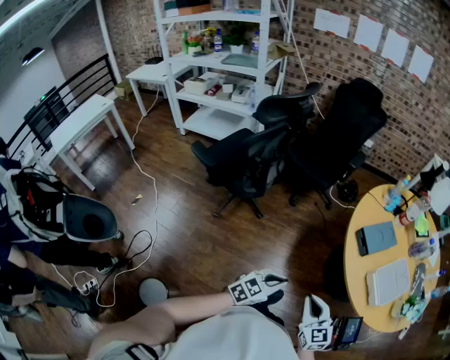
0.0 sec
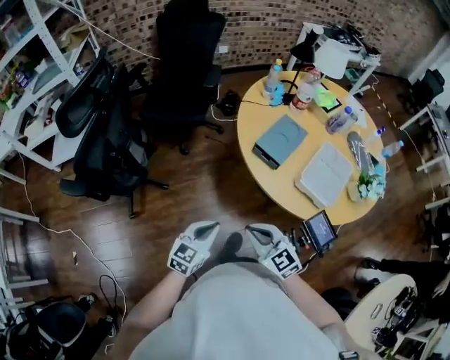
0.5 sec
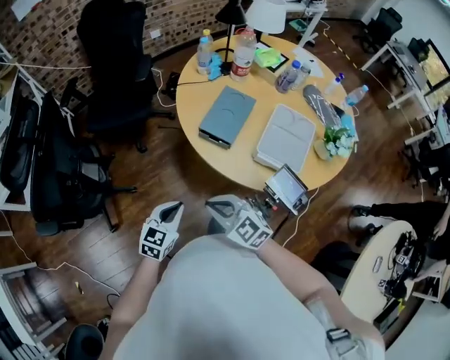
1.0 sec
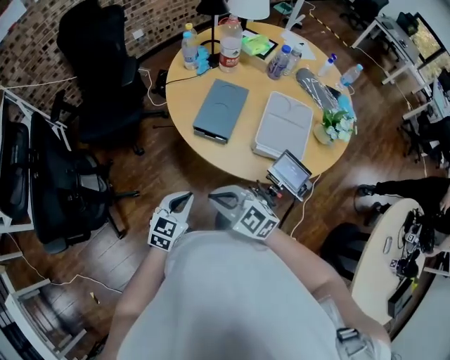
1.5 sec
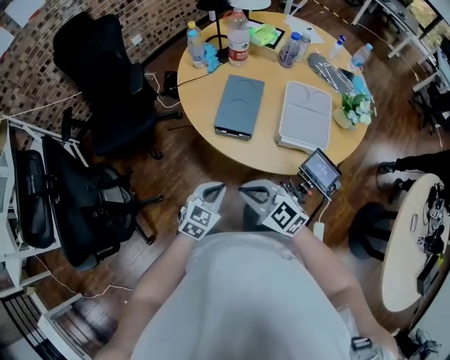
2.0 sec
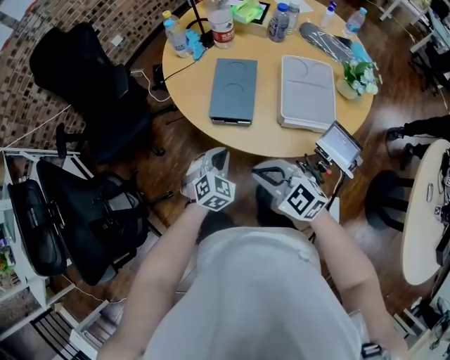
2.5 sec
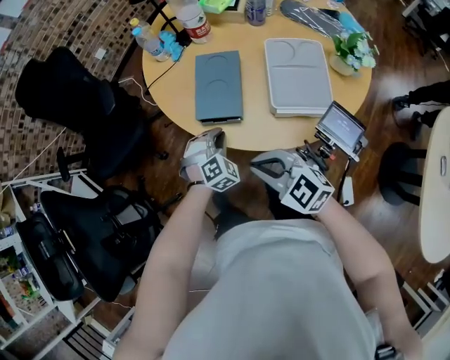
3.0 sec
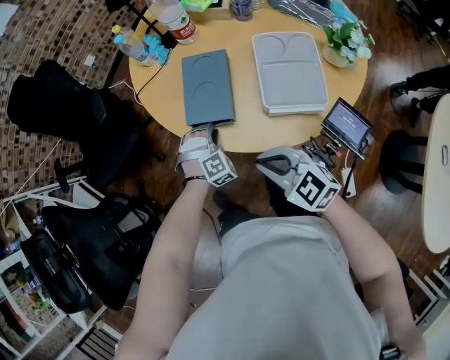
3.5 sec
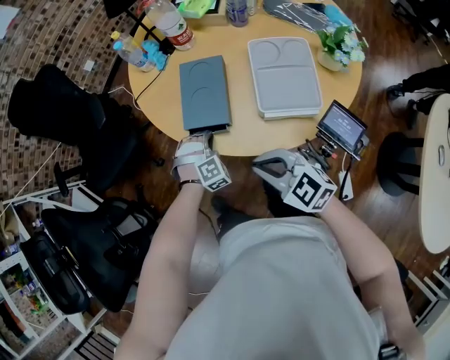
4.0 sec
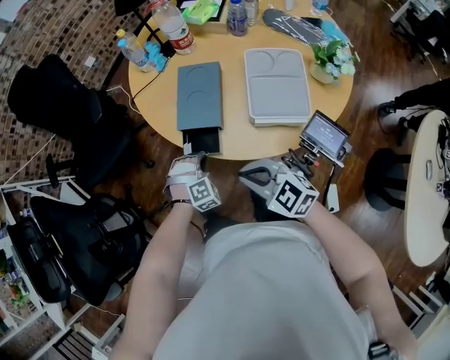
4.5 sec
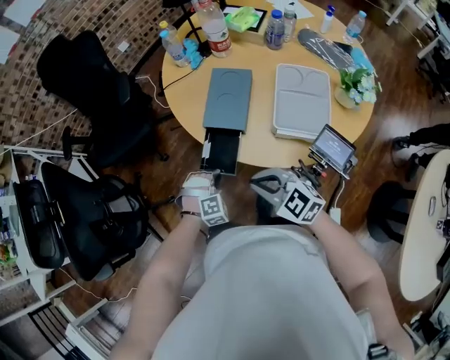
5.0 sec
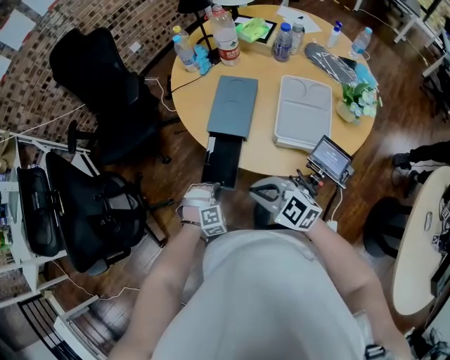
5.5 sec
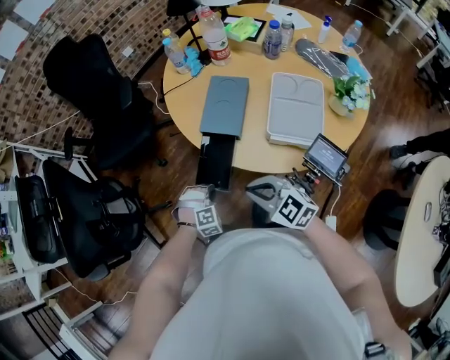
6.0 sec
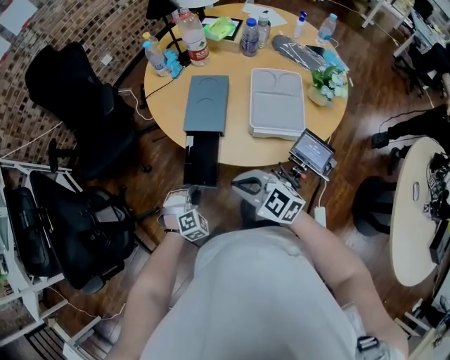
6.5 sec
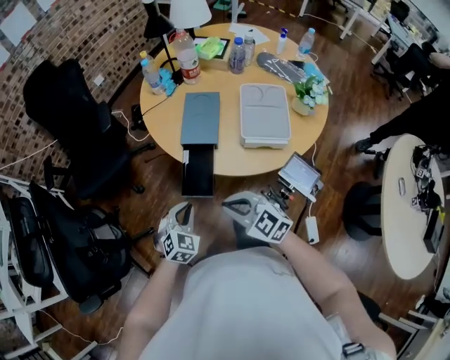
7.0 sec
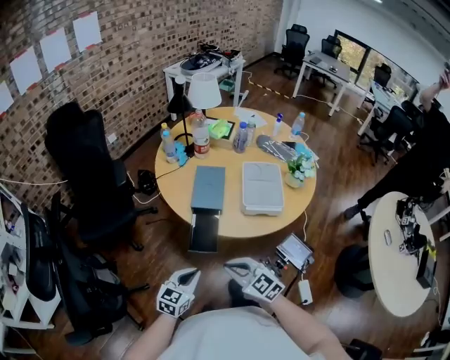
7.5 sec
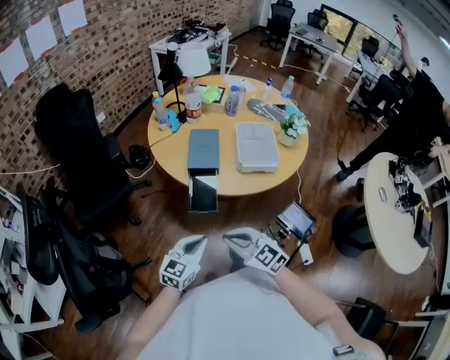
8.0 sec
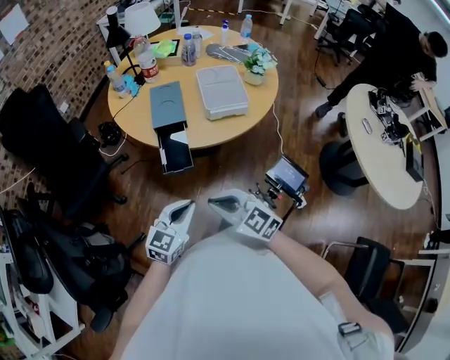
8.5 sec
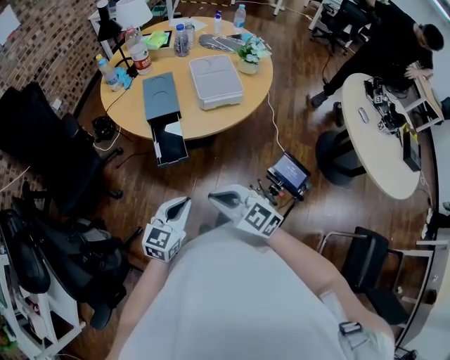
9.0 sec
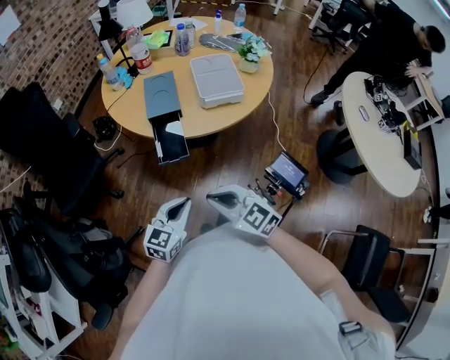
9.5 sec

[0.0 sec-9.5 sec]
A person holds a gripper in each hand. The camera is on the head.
0.0 sec to 2.0 sec: Both grippers travel together forward, roughly 30 cm. The left gripper swivels some 30 degrees.
2.0 sec to 4.0 sec: The right gripper goes about 10 cm to the right. The left gripper moves forward, downward and to the right, roughly 20 cm, and twists approximately 60 degrees clockwise, seen from behind.
4.0 sec to 5.5 sec: The left gripper heads backward and to the left, covering roughly 15 cm.
5.5 sec to 7.5 sec: The left gripper goes approximately 15 cm upward, and tilts its fingers roughly 30 degrees upward; the right gripper changes place by roughly 10 cm.
7.5 sec to 9.5 sec: Both grippers move backward, roughly 10 cm.

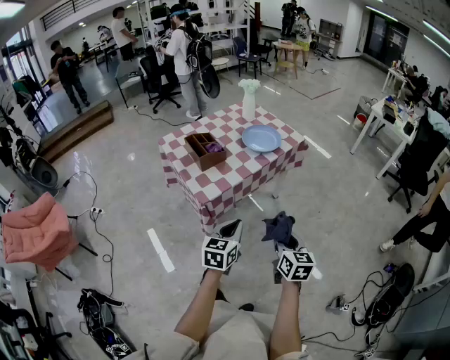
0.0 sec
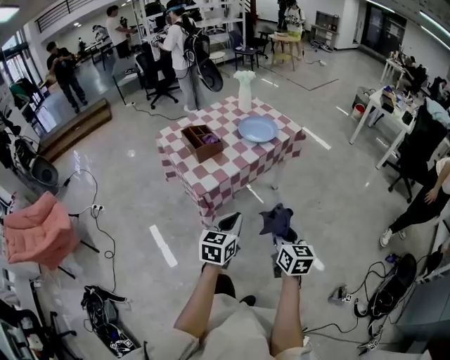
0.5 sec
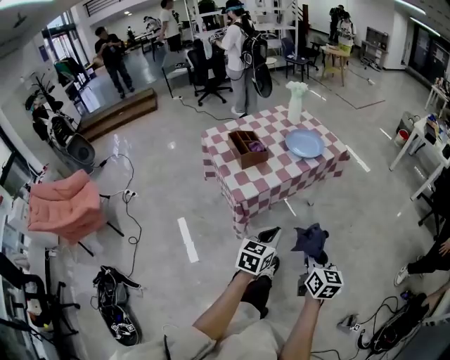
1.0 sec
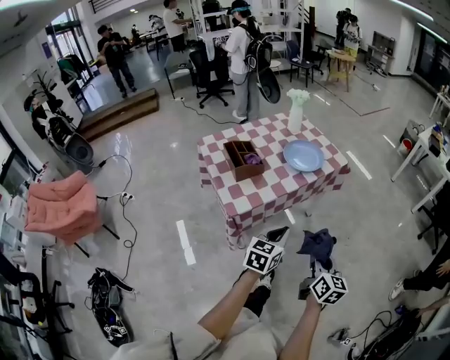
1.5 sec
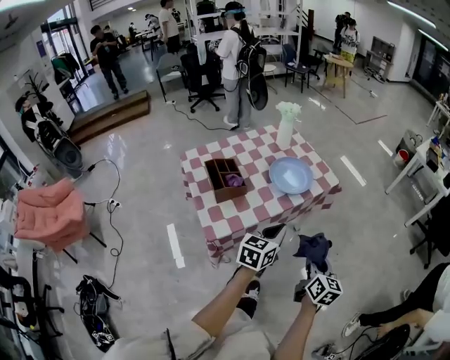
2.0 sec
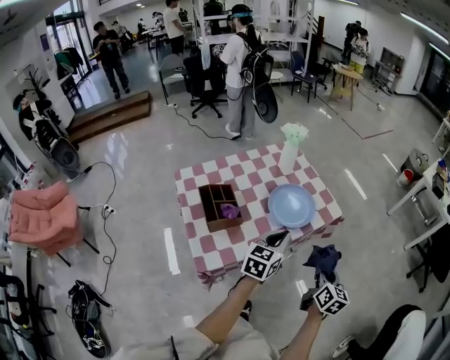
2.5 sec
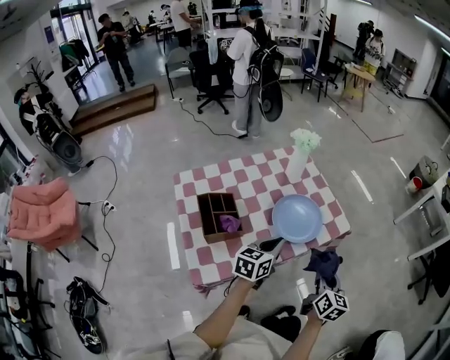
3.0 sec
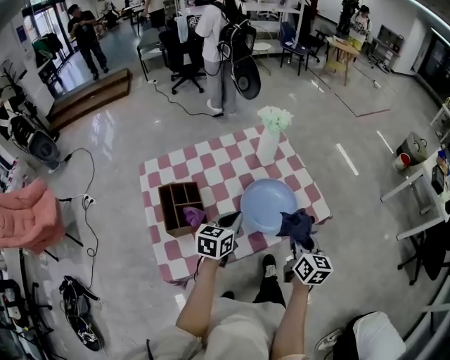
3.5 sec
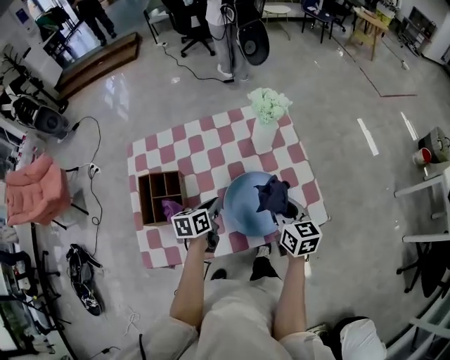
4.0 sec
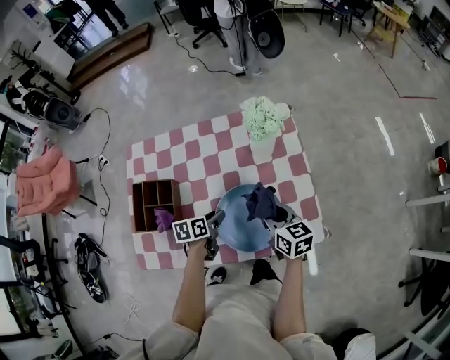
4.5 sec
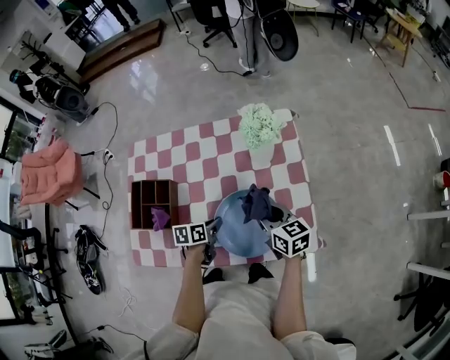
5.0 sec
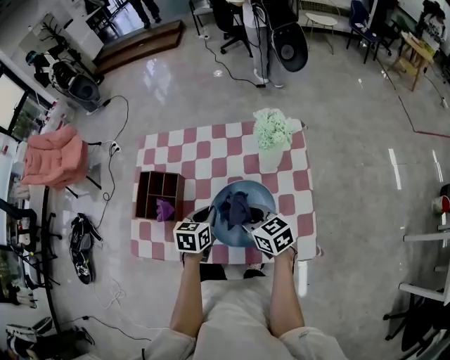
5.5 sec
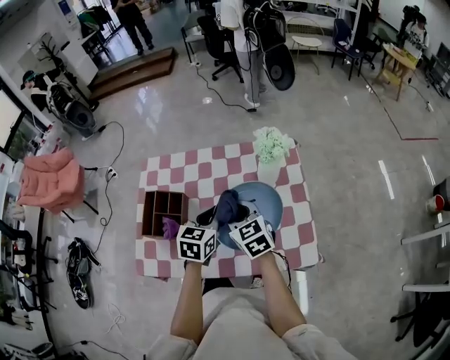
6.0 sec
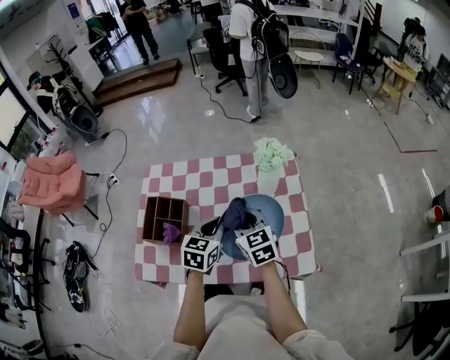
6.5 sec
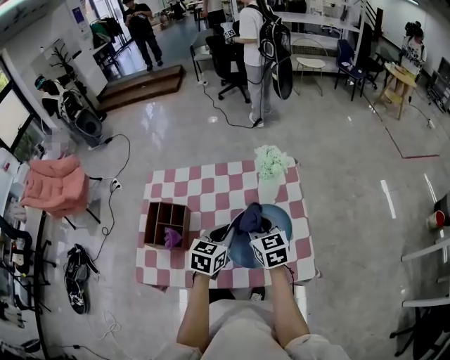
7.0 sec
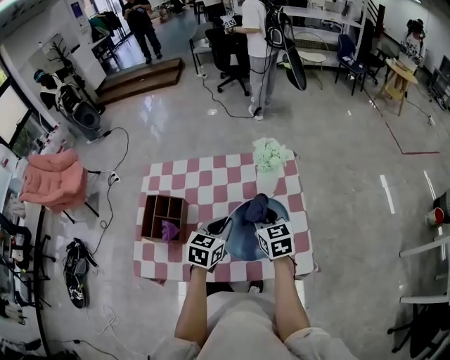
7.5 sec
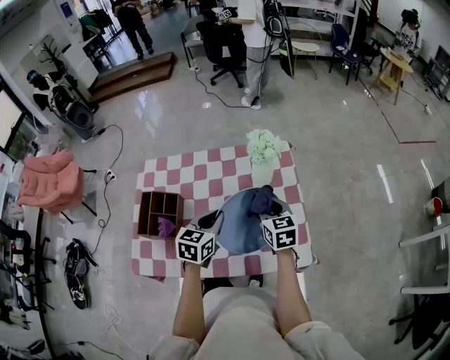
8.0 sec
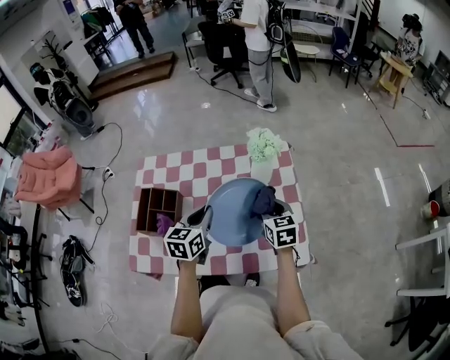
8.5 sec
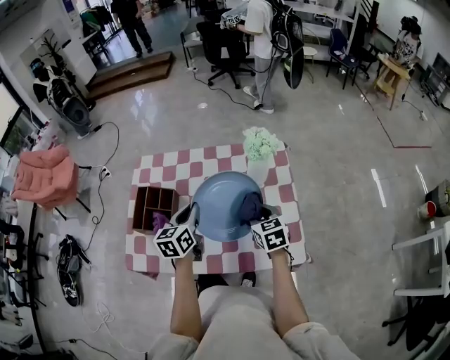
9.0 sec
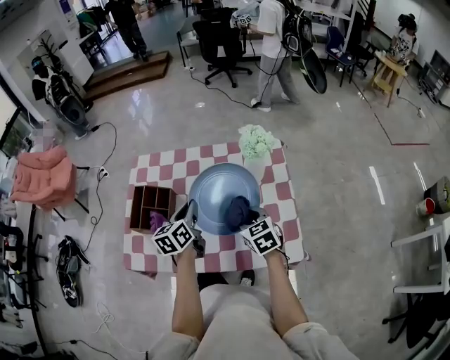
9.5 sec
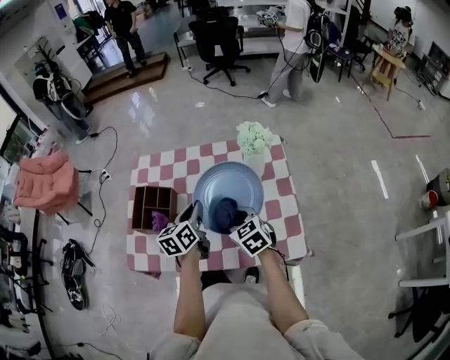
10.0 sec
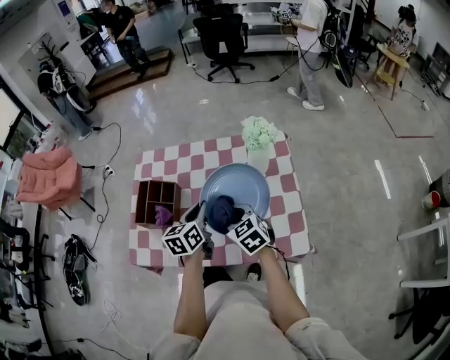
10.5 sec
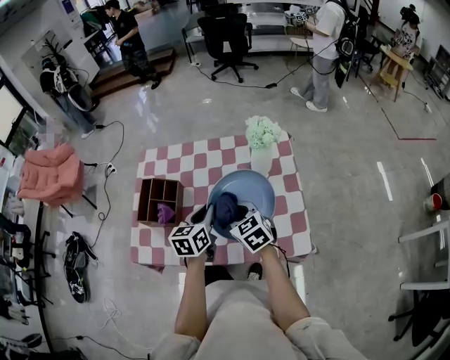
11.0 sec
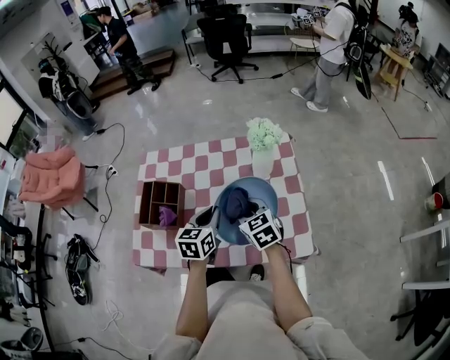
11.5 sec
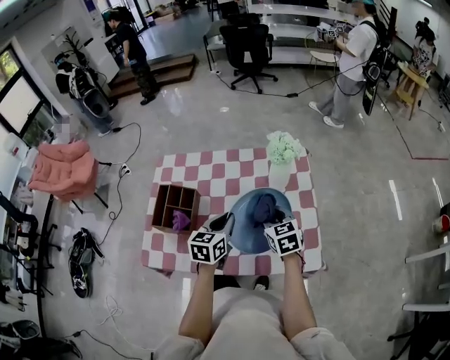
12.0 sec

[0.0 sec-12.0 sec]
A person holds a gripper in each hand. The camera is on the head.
0.0 sec to 2.0 sec: Both grippers move forward, some 25 cm.
2.0 sec to 4.0 sec: The right gripper ends up some 50 cm from where it was, and swivels about 40 degrees. Meanwhile the left gripper moves about 40 cm, and changes its angle by about 40 degrees.
4.0 sec to 6.0 sec: The left gripper moves upward, approximately 10 cm, swivels about 30 degrees, and opens and closes again; the right gripper shifts by about 15 cm, and turns by about 30 degrees.
6.0 sec to 8.0 sec: The right gripper heads to the right, covering approximately 15 cm.
8.0 sec to 10.0 sec: The left gripper shifts approximately 5 cm to the left, and swivels about 30 degrees, while the right gripper heads to the left and backward, covering some 10 cm, and rotates approximately 30 degrees.
10.0 sec to 12.0 sec: The right gripper is displaced to the right by roughly 5 cm; the left gripper changes its angle by roughly 20 degrees.

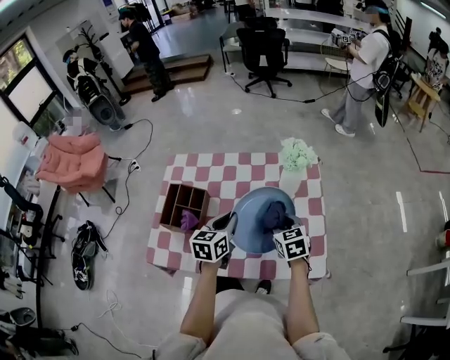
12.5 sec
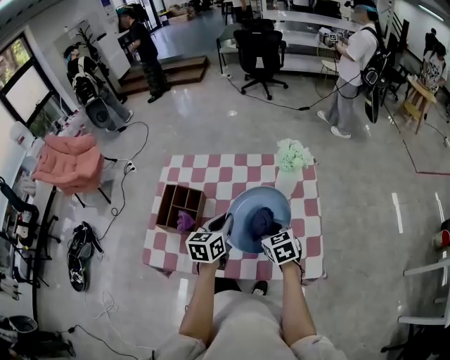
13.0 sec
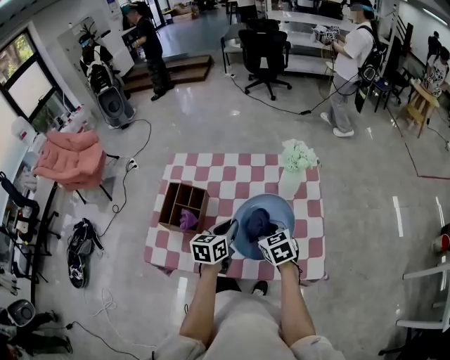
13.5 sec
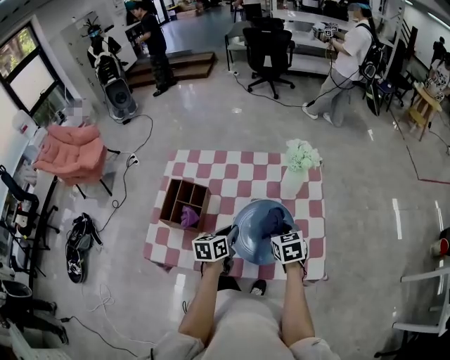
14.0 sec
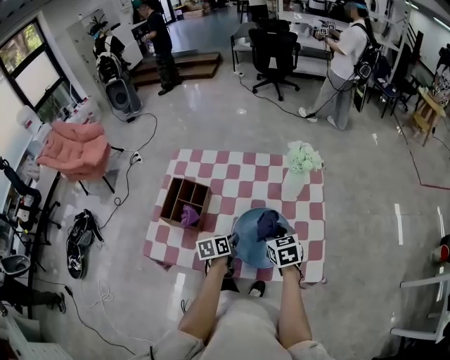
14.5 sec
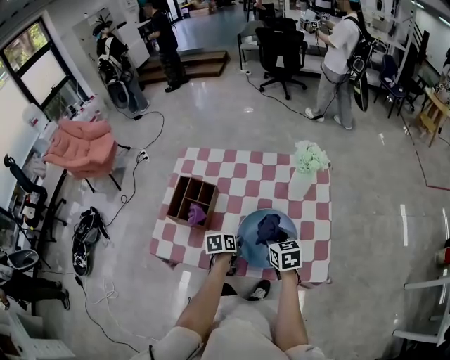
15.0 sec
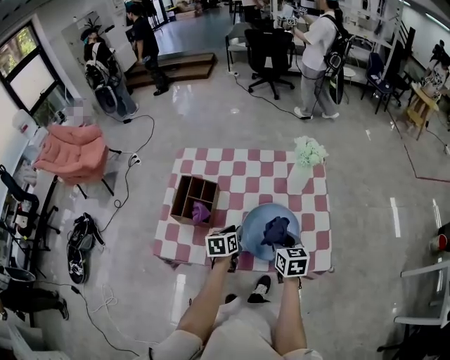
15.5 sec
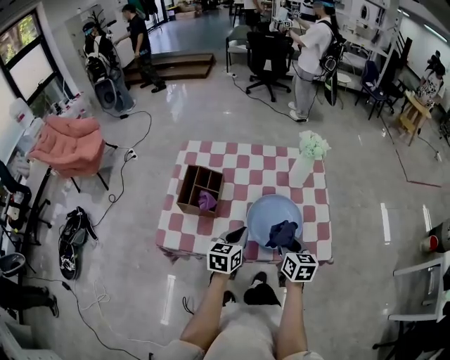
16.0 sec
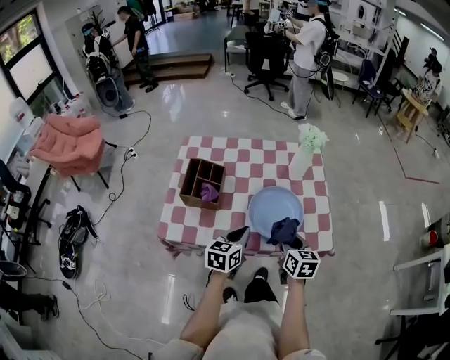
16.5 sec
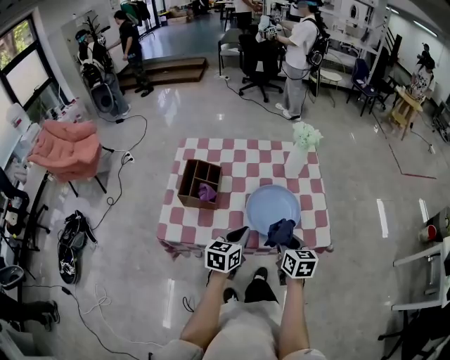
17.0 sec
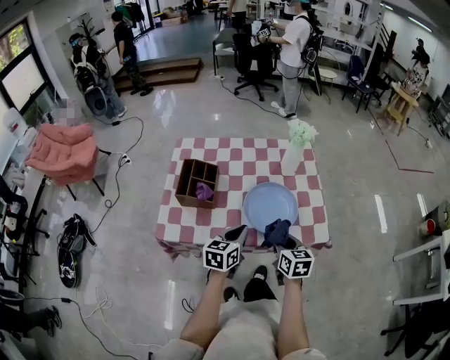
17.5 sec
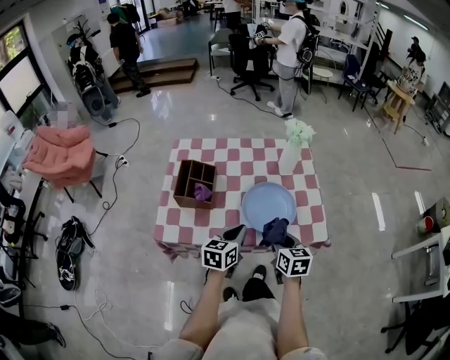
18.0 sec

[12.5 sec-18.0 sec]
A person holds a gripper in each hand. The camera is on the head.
12.5 sec to 14.5 sec: The left gripper moves downward, some 15 cm, and swivels approximately 30 degrees.
14.5 sec to 16.0 sec: The right gripper moves backward, about 10 cm, and rotates roughly 20 degrees. The left gripper shifts approximately 15 cm upward and backward, and turns by approximately 30 degrees.
16.0 sec to 18.0 sec: Both grippers travel together backward, roughly 5 cm.
